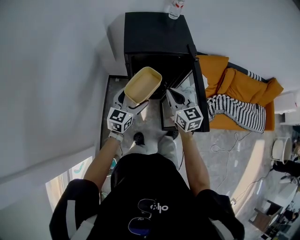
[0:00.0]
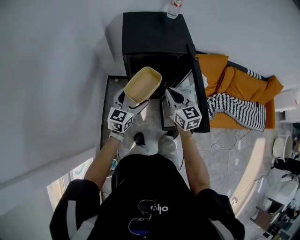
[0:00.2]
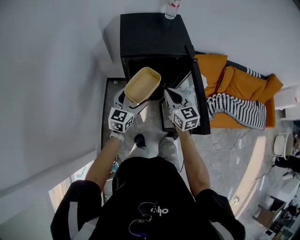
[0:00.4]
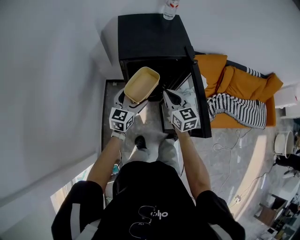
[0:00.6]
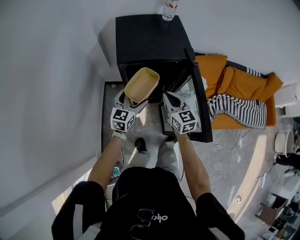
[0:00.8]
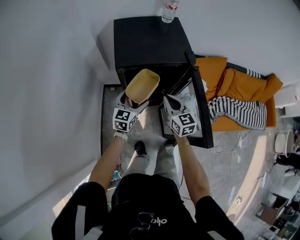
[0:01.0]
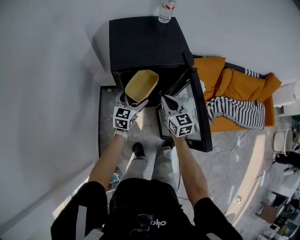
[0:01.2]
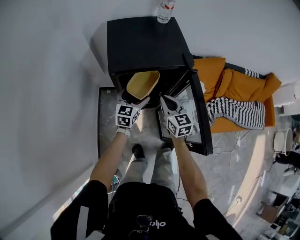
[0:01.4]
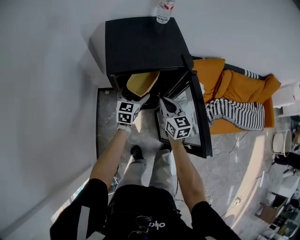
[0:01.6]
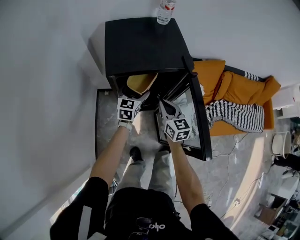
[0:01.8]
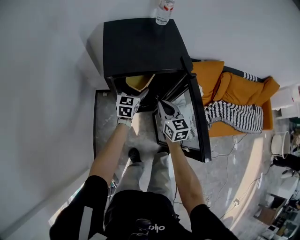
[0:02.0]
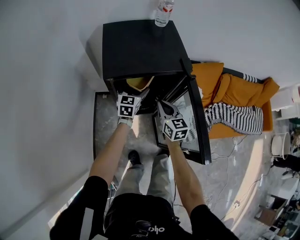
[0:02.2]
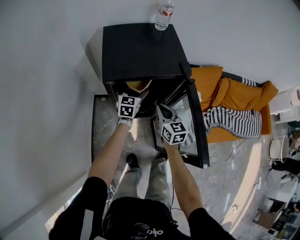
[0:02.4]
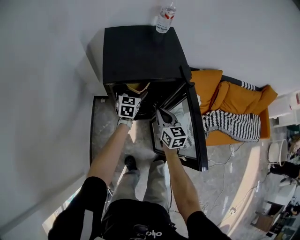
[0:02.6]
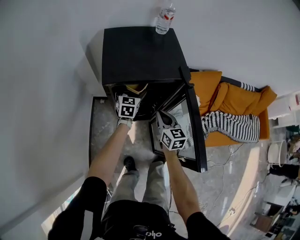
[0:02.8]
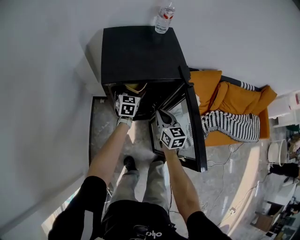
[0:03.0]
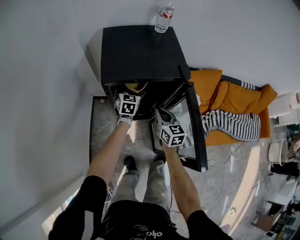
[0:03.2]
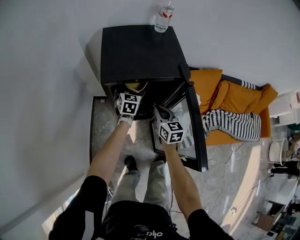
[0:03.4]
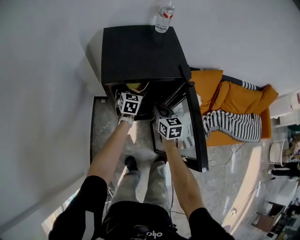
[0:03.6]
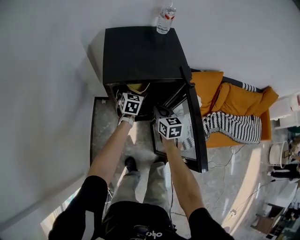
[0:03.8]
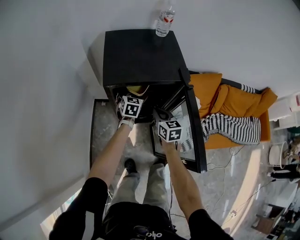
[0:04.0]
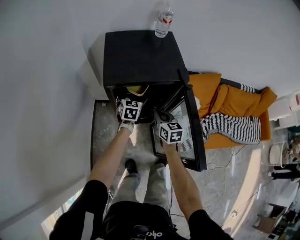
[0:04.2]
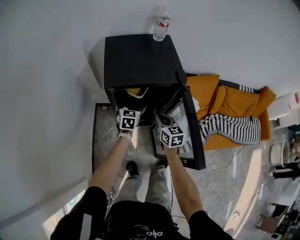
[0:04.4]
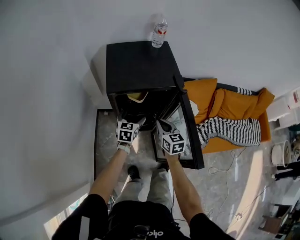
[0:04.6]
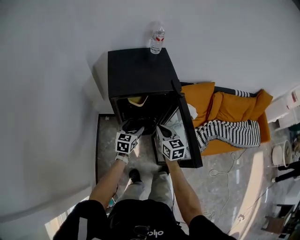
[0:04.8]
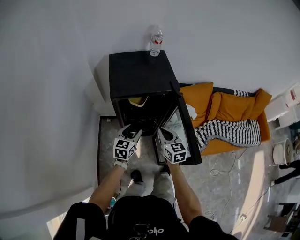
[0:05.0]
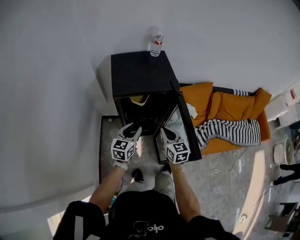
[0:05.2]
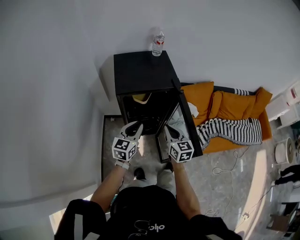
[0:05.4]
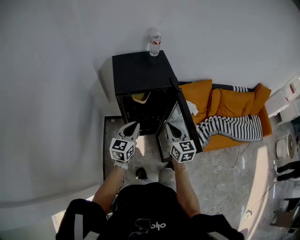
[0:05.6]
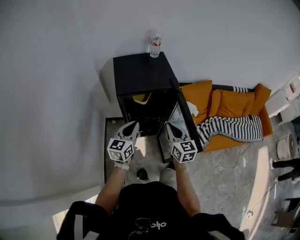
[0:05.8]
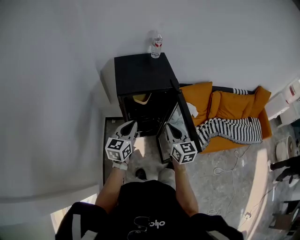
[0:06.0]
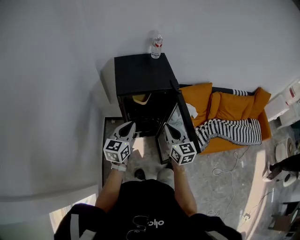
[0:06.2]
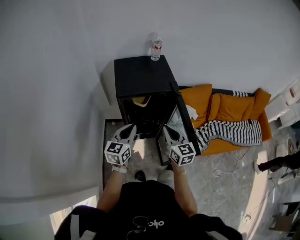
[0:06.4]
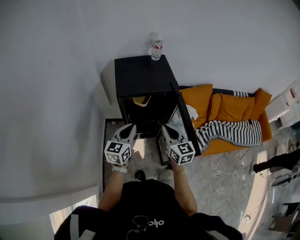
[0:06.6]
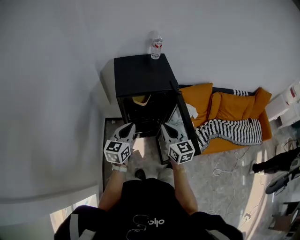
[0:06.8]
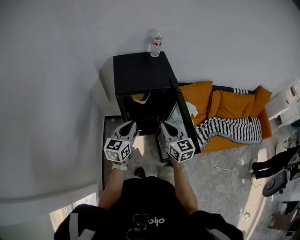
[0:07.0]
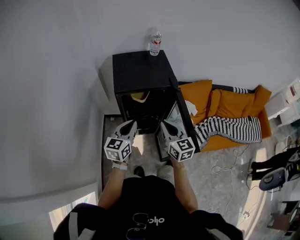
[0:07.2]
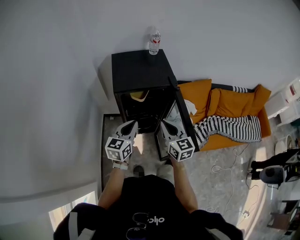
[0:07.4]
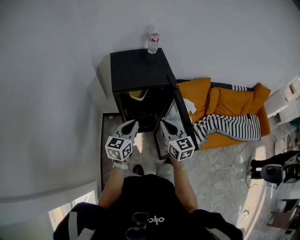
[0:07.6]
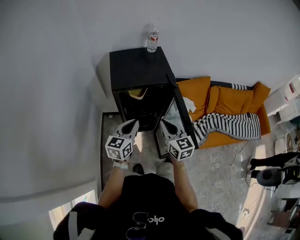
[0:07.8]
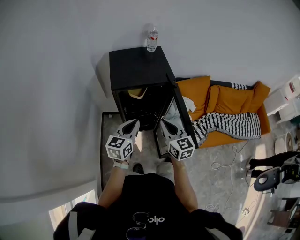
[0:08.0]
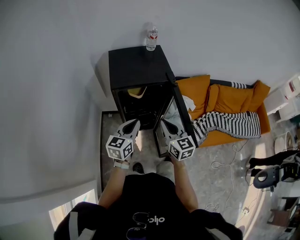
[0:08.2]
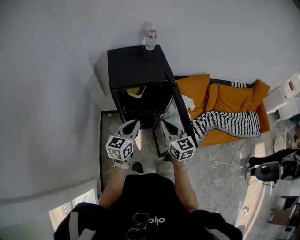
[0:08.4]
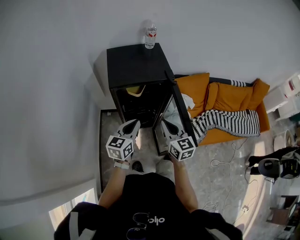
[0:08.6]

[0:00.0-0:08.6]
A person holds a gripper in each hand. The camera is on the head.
0:00.0 to 0:01.4: Both grippers move forward and downward, some 15 cm.
0:01.4 to 0:02.8: The right gripper changes place by roughly 5 cm. The left gripper heads forward, covering some 10 cm.
0:02.8 to 0:04.4: The left gripper shifts roughly 5 cm backward.
0:04.4 to 0:05.8: The two grippers go about 25 cm upward and backward. The left gripper swivels roughly 20 degrees, and closes its fingers.
0:05.8 to 0:08.6: The grippers move only a little.

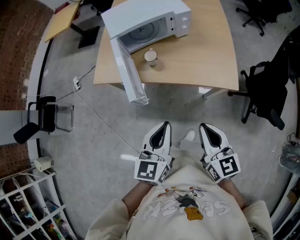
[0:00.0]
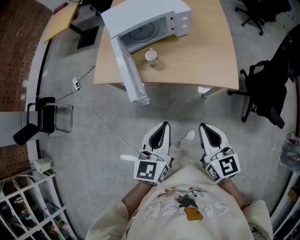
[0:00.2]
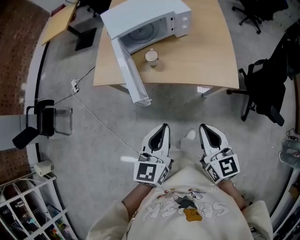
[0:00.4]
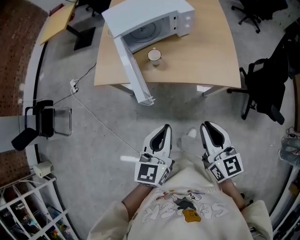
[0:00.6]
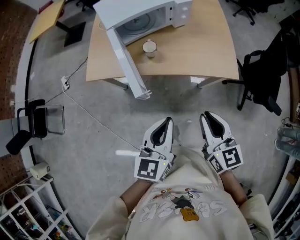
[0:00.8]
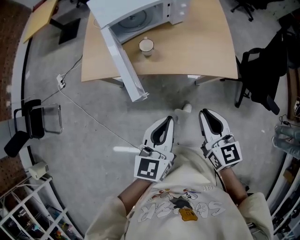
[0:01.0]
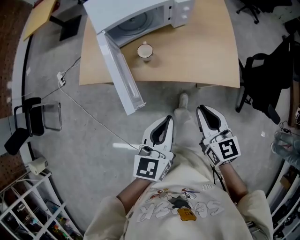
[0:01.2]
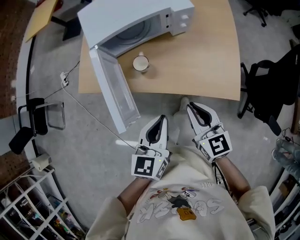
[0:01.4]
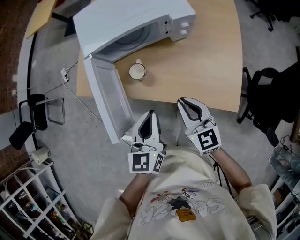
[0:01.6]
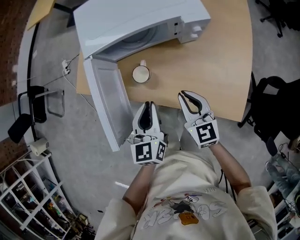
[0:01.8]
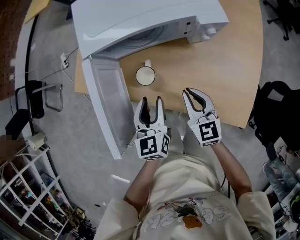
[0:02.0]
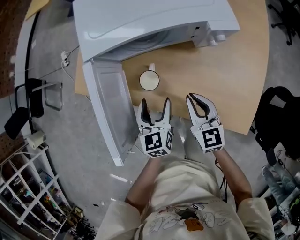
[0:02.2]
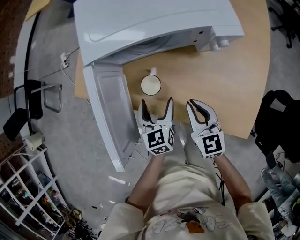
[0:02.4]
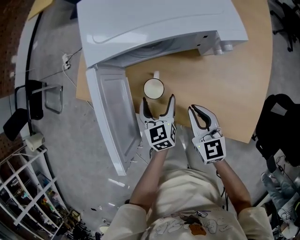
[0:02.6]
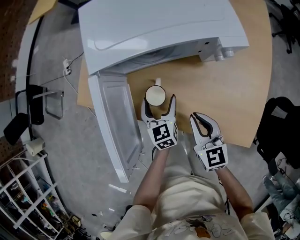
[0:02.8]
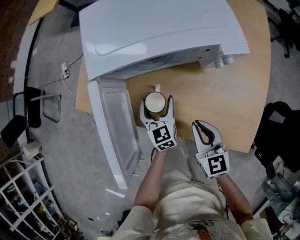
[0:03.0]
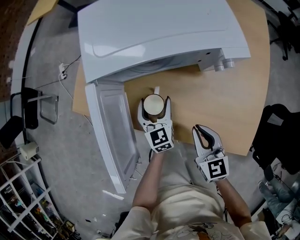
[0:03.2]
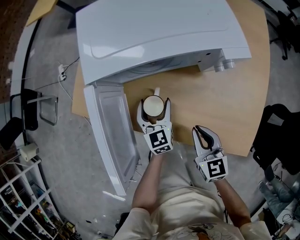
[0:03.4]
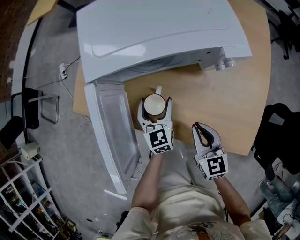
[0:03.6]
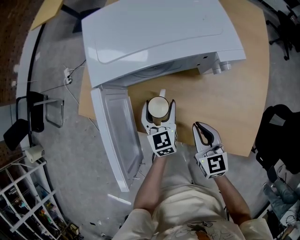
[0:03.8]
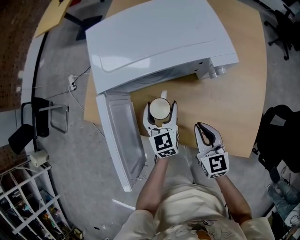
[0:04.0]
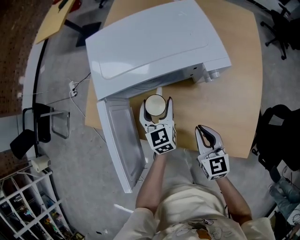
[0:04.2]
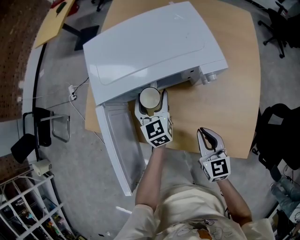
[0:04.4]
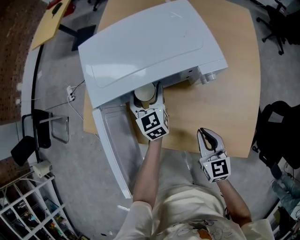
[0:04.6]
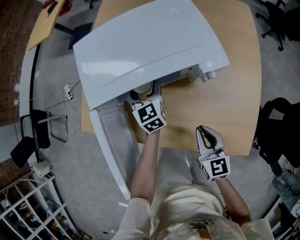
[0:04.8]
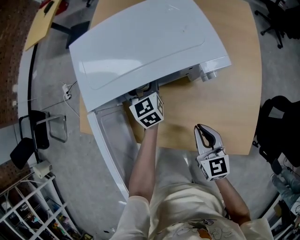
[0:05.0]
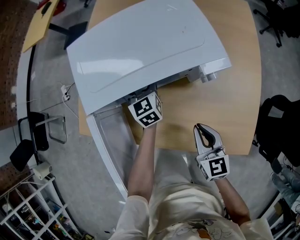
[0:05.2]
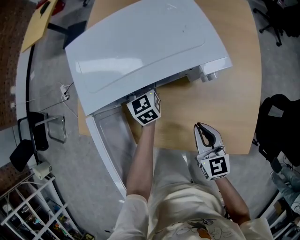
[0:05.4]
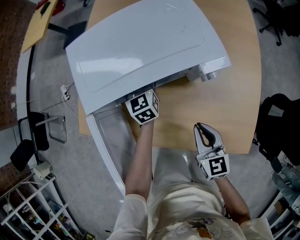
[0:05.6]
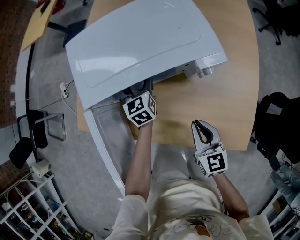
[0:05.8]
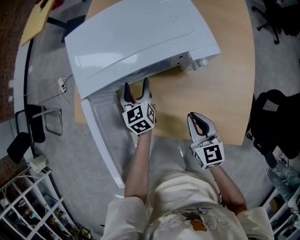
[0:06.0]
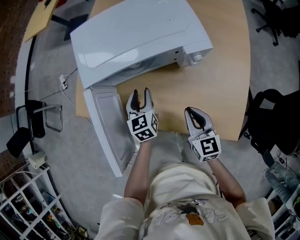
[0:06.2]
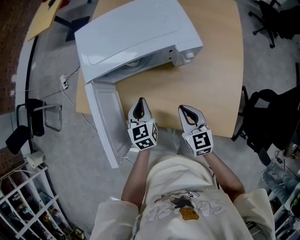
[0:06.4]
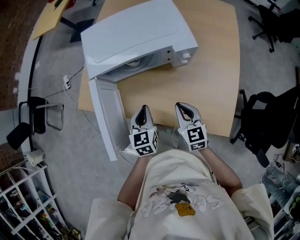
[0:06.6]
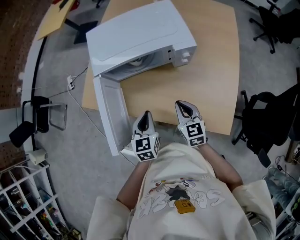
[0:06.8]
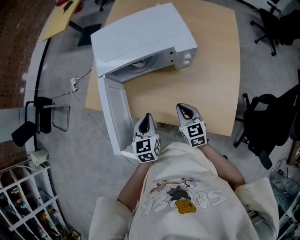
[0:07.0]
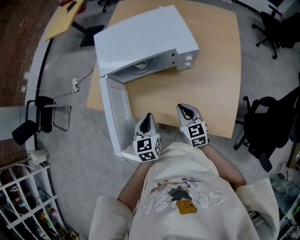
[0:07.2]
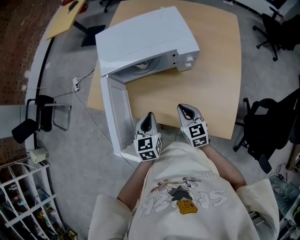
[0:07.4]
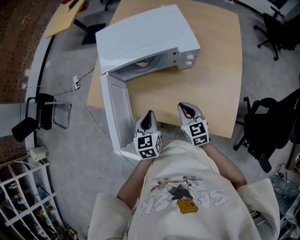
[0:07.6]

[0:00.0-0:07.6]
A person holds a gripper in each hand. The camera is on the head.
0:00.0 to 0:01.6: Both grippers move forward, roughly 25 cm.
0:01.6 to 0:03.0: The right gripper shifts about 15 cm downward and forward, while the left gripper heads downward and forward, covering some 30 cm, rotates roughly 20 degrees, and opens up.
0:03.0 to 0:04.6: The left gripper travels forward and upward by some 15 cm, while the right gripper goes roughly 5 cm to the right.
0:04.6 to 0:06.0: The left gripper moves roughly 5 cm forward and comes back.
0:06.0 to 0:07.6: The right gripper changes place by some 5 cm. The left gripper is displaced backward and upward by approximately 25 cm, and closes its fingers.

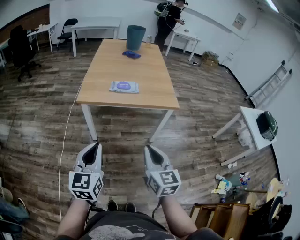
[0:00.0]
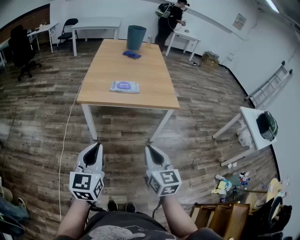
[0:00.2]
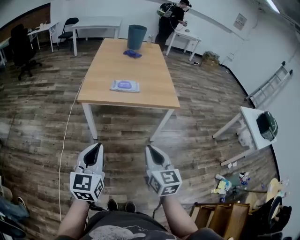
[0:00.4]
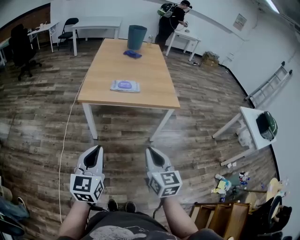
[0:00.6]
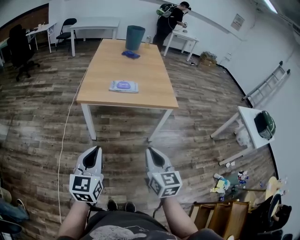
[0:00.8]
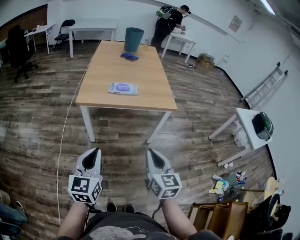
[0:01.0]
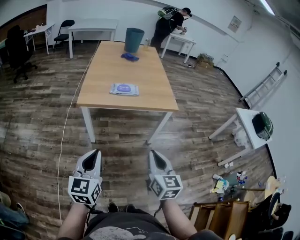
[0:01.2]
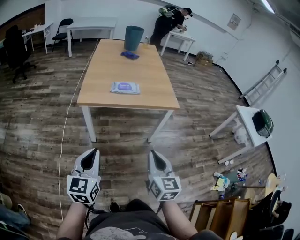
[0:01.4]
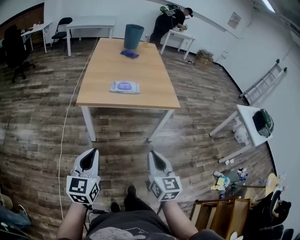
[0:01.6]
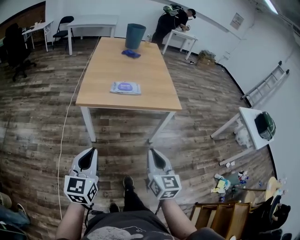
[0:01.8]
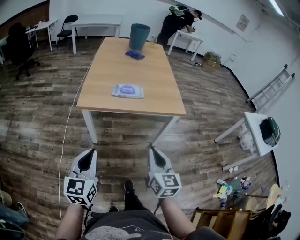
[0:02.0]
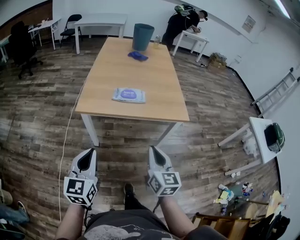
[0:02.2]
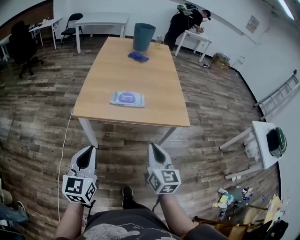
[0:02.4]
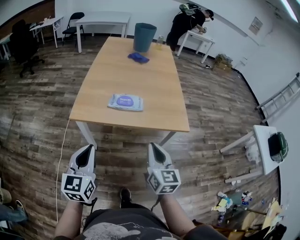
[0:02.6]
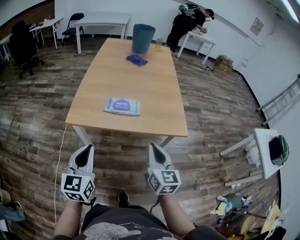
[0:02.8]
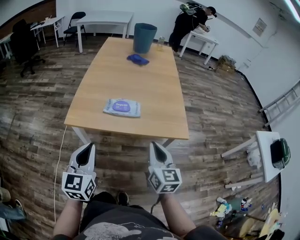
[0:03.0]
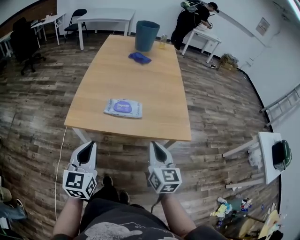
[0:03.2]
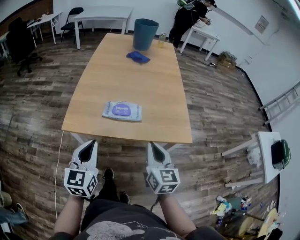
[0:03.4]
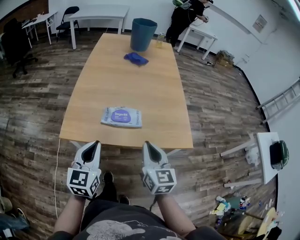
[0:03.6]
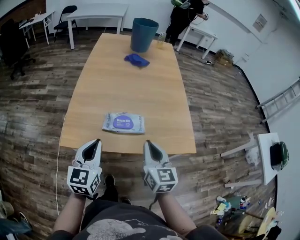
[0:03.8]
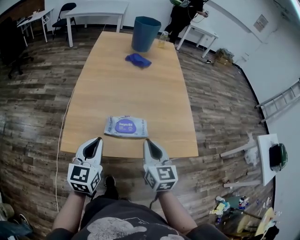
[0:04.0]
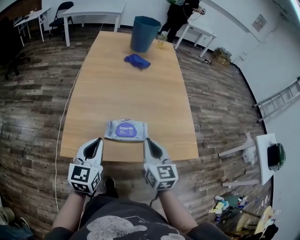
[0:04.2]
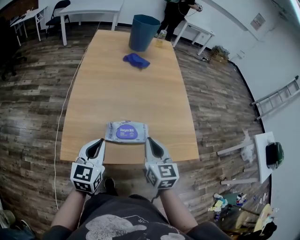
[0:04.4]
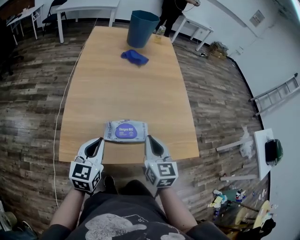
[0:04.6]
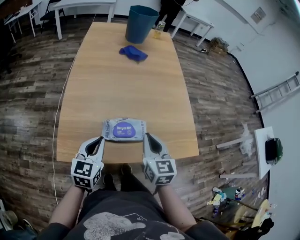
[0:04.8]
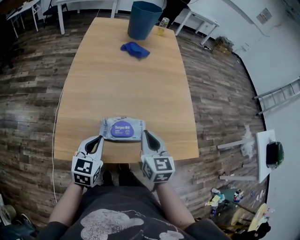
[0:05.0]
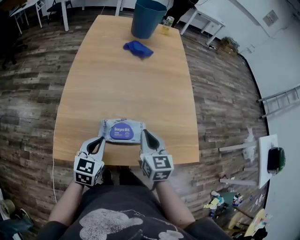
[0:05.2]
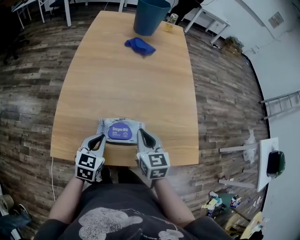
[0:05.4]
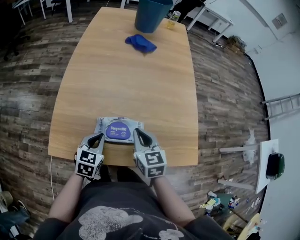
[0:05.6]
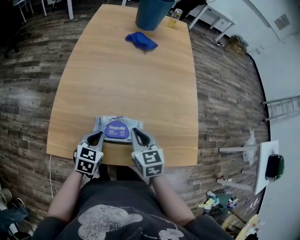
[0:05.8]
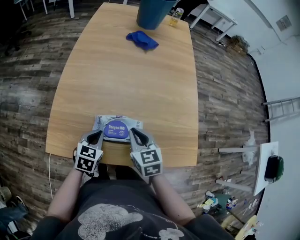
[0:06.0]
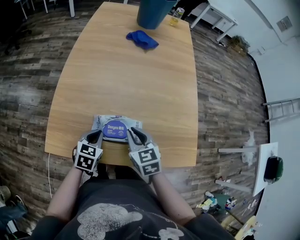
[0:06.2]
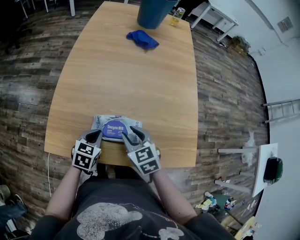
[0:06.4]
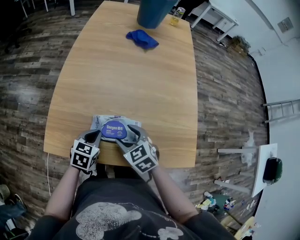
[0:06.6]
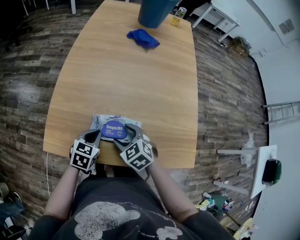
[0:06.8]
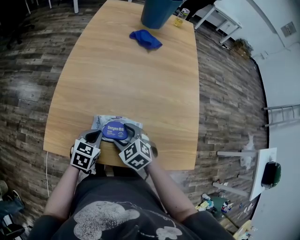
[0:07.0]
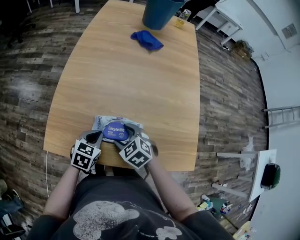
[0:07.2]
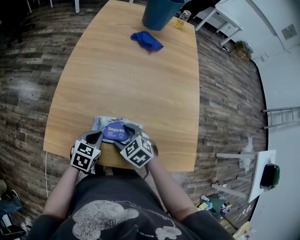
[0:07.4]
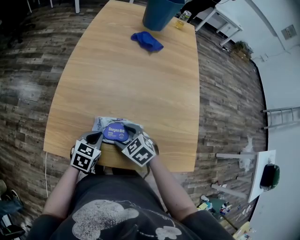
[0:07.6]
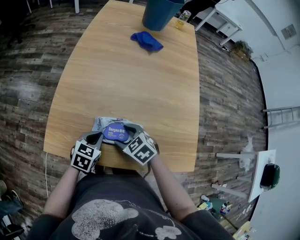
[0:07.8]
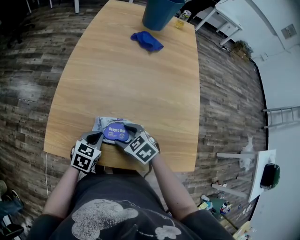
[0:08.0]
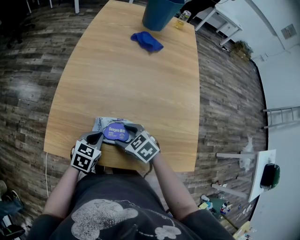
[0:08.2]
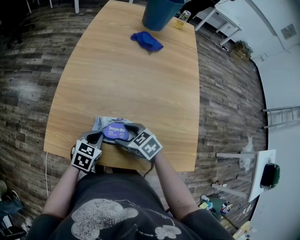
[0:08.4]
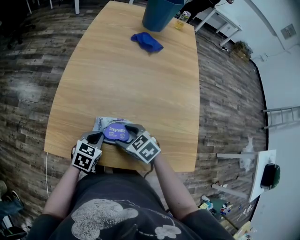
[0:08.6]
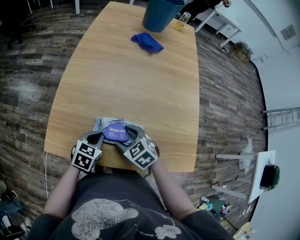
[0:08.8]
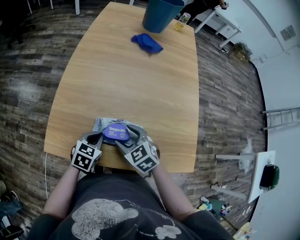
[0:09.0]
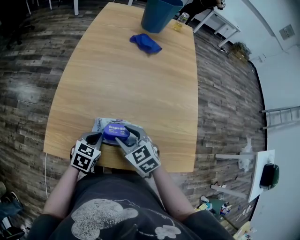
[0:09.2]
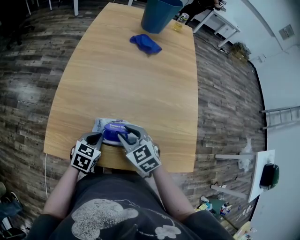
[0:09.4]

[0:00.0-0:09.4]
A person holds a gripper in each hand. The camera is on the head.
0:00.0 to 0:01.6: The left gripper changes place by about 5 cm.
0:01.6 to 0:03.2: Both grippers travel together forward, some 25 cm.
0:03.2 to 0:04.8: The right gripper moves forward and to the left, roughly 20 cm, while the left gripper heads forward and downward, covering some 25 cm.
0:04.8 to 0:06.2: The two grippers go roughly 10 cm downward. The left gripper swivels about 20 degrees. Meanwhile the right gripper swivels approximately 30 degrees.
0:06.2 to 0:07.8: The right gripper travels downward by approximately 5 cm, changes its angle by about 30 degrees, and opens its fingers.
0:07.8 to 0:09.4: The right gripper moves upward, roughly 5 cm, and closes up.
